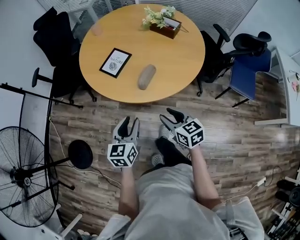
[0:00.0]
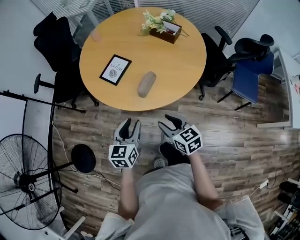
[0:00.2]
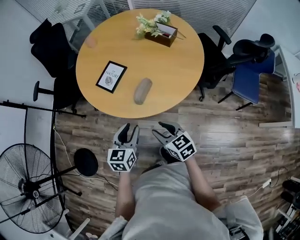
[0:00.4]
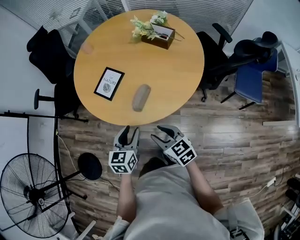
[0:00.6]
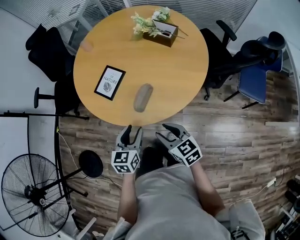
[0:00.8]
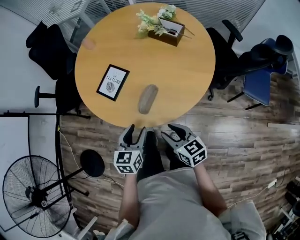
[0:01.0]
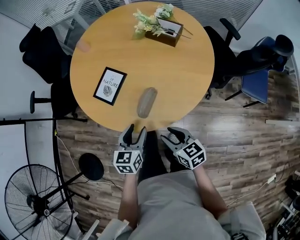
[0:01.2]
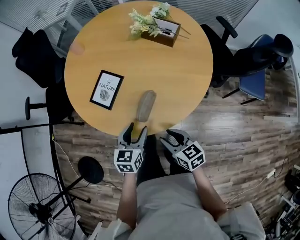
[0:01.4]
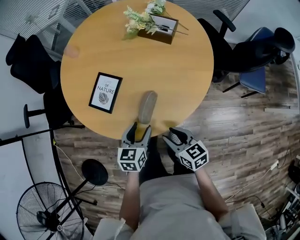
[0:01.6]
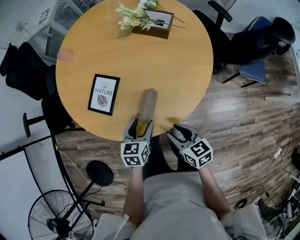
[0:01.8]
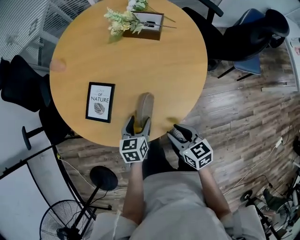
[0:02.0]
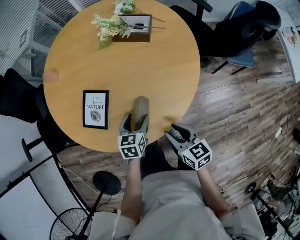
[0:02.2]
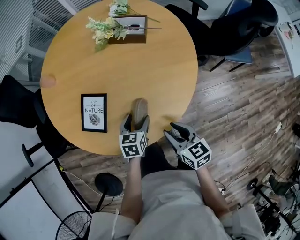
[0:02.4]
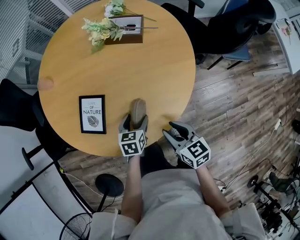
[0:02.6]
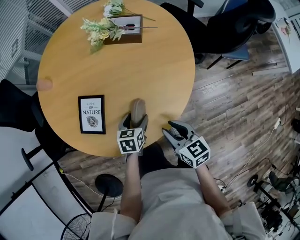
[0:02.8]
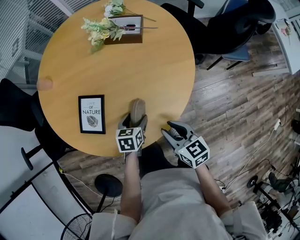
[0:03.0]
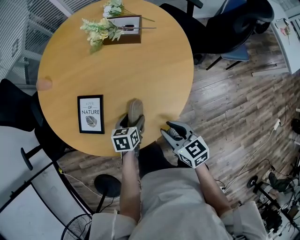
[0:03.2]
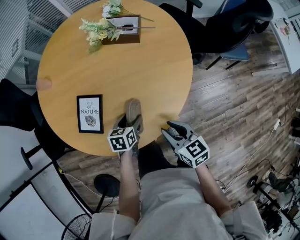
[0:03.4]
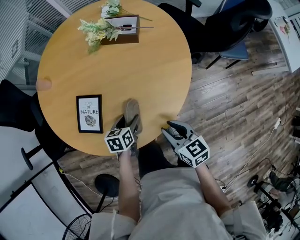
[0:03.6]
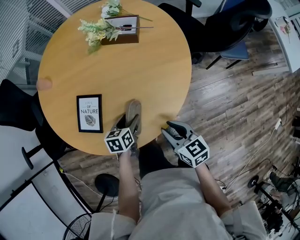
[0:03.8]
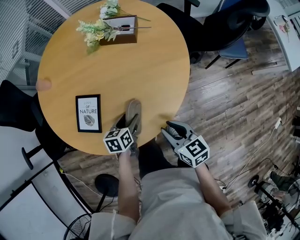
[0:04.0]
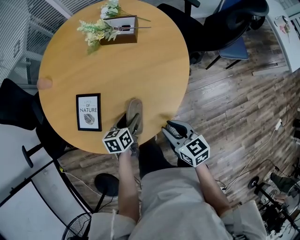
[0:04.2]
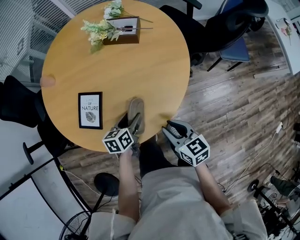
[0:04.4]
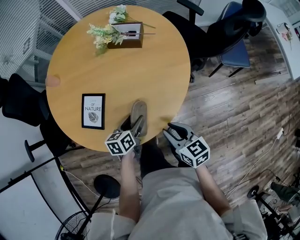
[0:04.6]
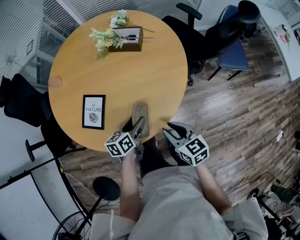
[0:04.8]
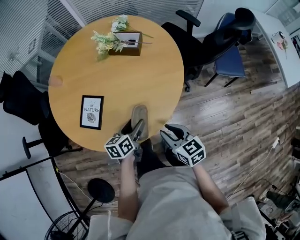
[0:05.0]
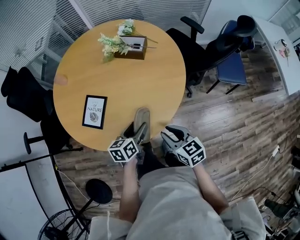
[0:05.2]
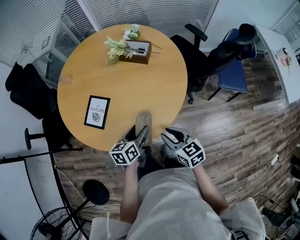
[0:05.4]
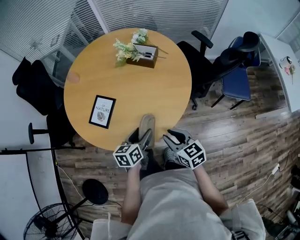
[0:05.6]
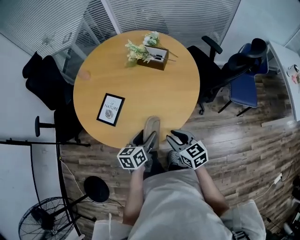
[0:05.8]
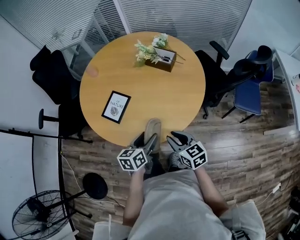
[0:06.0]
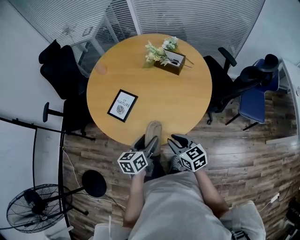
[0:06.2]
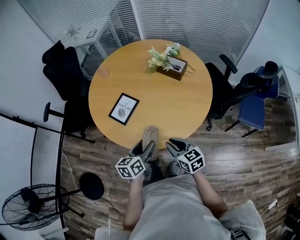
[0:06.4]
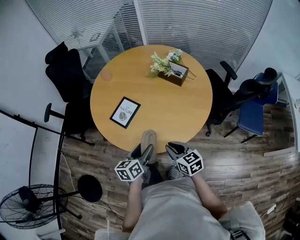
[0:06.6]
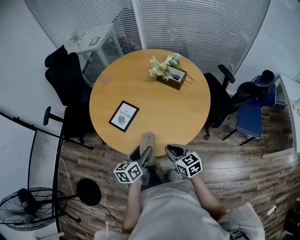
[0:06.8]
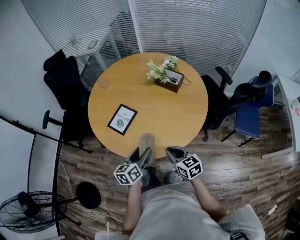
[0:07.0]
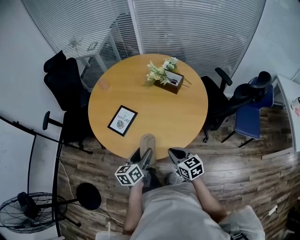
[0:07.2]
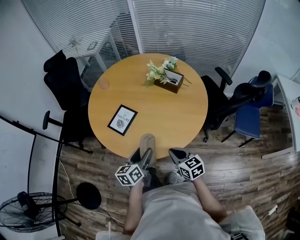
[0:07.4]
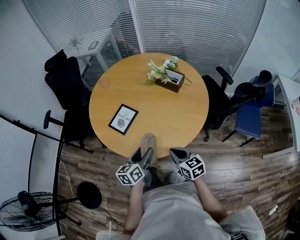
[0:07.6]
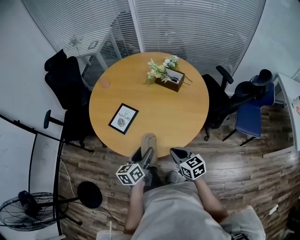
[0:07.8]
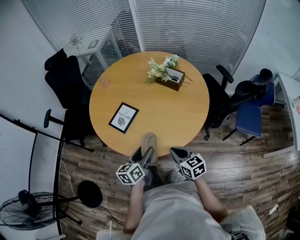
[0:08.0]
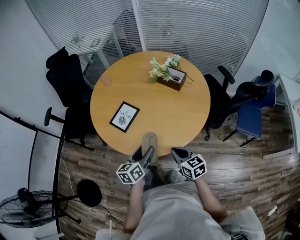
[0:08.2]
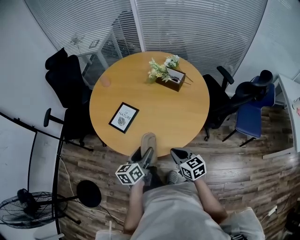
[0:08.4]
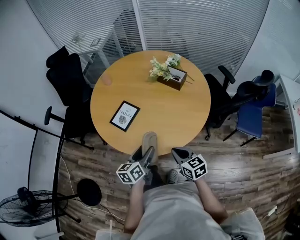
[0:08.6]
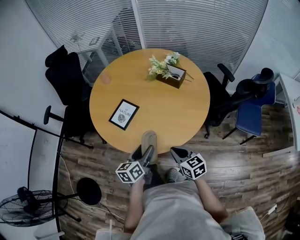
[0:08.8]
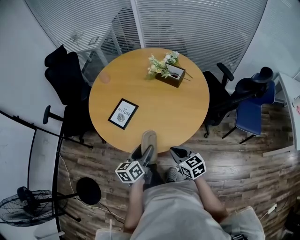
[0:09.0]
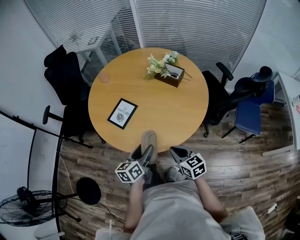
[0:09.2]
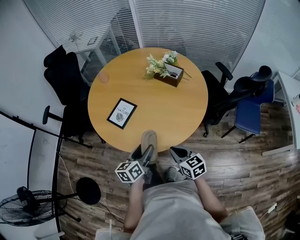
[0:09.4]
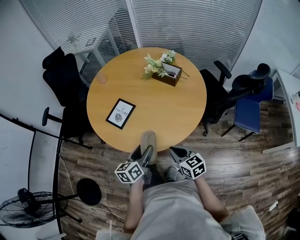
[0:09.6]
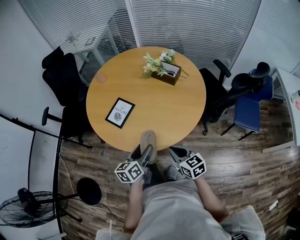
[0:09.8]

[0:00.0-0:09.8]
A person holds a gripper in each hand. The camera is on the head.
0:00.0 to 0:01.4: The left gripper moves forward, downward and to the right, approximately 20 cm. Meanwhile the right gripper moves forward and downward, approximately 15 cm.
0:01.4 to 0:02.8: The left gripper goes about 10 cm downward, and rotates approximately 30 degrees, while the right gripper ends up roughly 5 cm from where it was, and turns by some 20 degrees.
0:02.8 to 0:04.2: The grippers stay close to where they were, moving slightly.
0:04.2 to 0:05.6: The right gripper shifts about 5 cm upward, while the left gripper goes some 15 cm upward, backward and to the right.
0:05.6 to 0:07.0: The left gripper moves to the left, about 10 cm.
0:07.0 to 0:09.8: The grippers stay close to where they were, moving slightly.

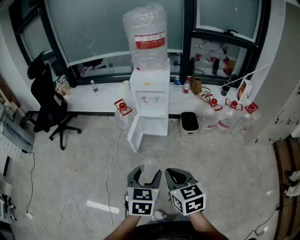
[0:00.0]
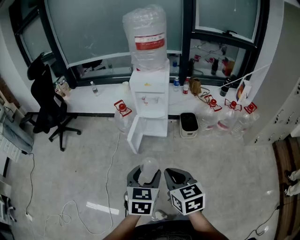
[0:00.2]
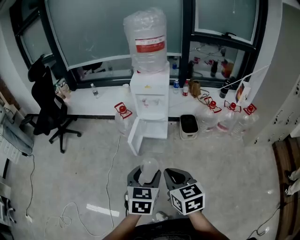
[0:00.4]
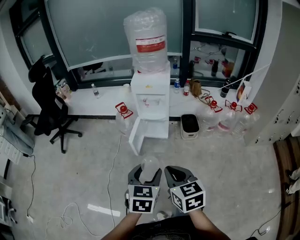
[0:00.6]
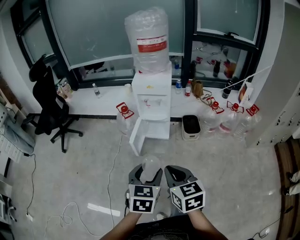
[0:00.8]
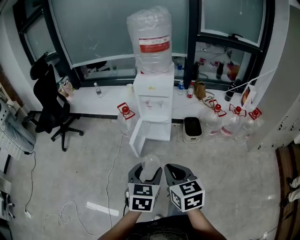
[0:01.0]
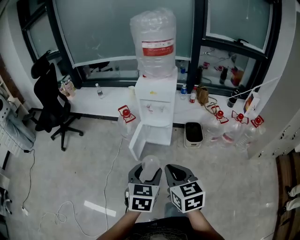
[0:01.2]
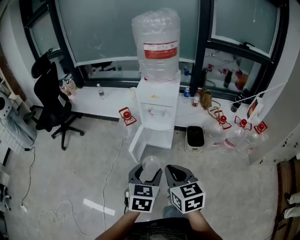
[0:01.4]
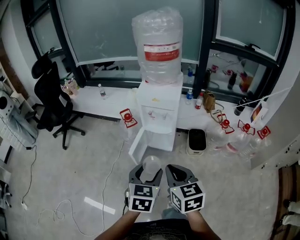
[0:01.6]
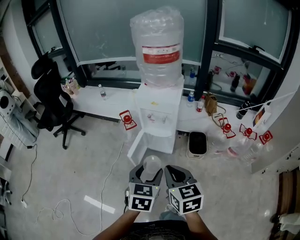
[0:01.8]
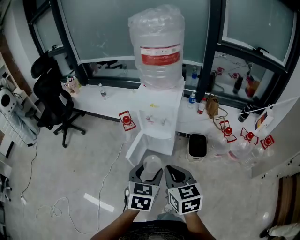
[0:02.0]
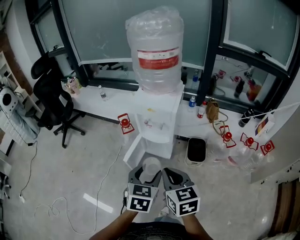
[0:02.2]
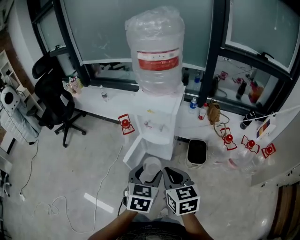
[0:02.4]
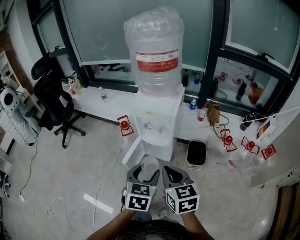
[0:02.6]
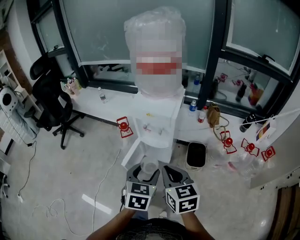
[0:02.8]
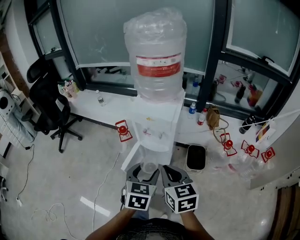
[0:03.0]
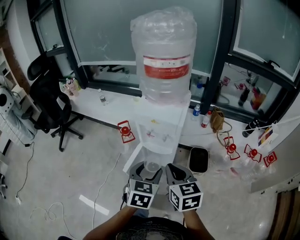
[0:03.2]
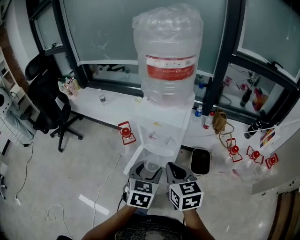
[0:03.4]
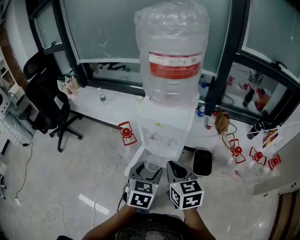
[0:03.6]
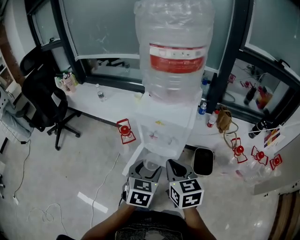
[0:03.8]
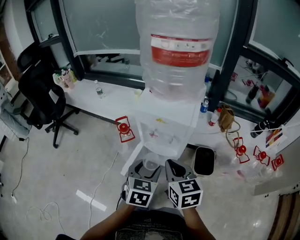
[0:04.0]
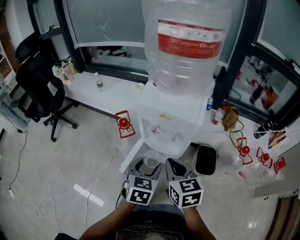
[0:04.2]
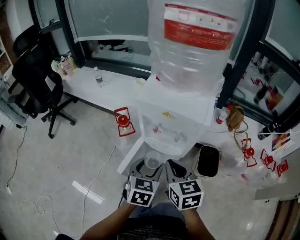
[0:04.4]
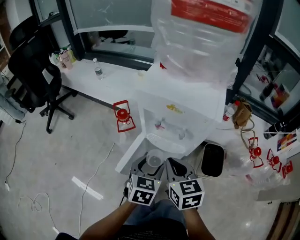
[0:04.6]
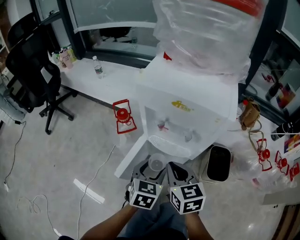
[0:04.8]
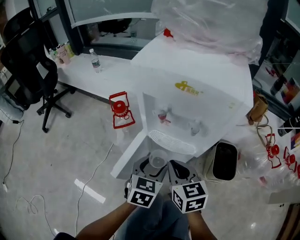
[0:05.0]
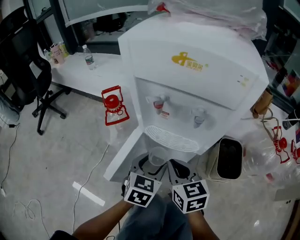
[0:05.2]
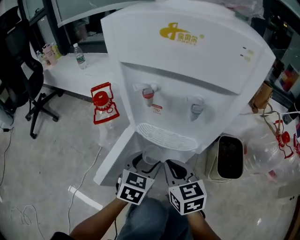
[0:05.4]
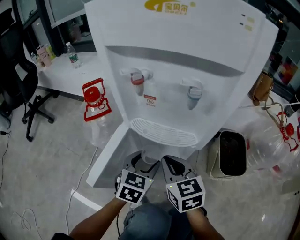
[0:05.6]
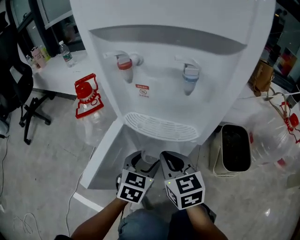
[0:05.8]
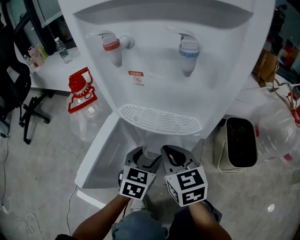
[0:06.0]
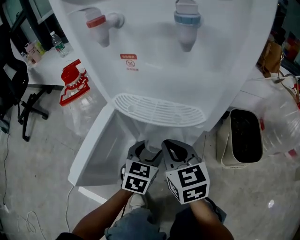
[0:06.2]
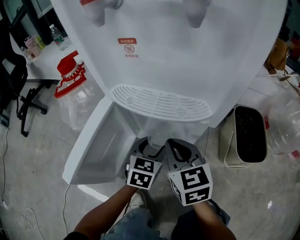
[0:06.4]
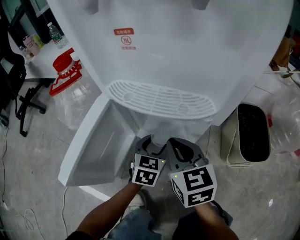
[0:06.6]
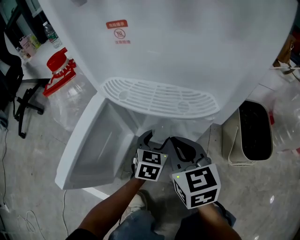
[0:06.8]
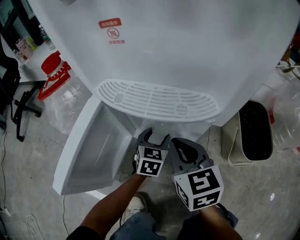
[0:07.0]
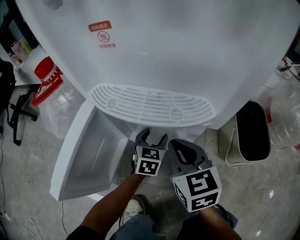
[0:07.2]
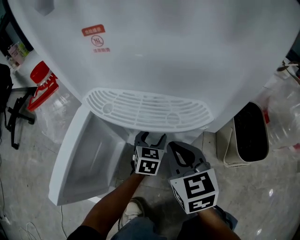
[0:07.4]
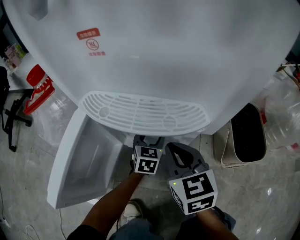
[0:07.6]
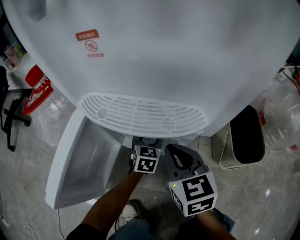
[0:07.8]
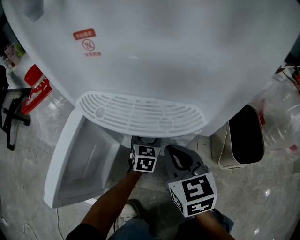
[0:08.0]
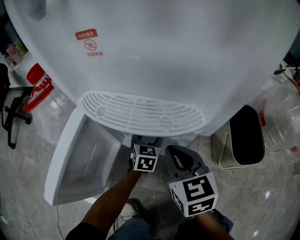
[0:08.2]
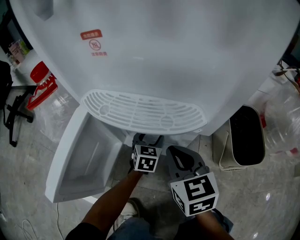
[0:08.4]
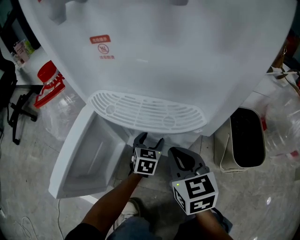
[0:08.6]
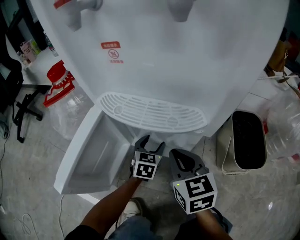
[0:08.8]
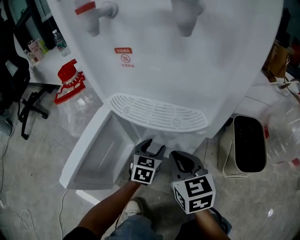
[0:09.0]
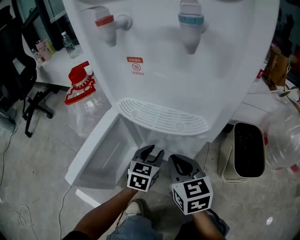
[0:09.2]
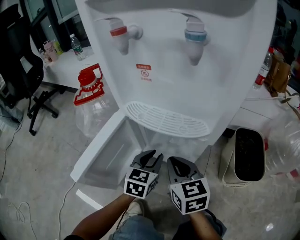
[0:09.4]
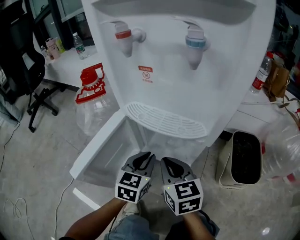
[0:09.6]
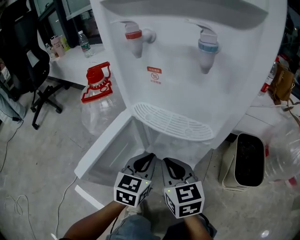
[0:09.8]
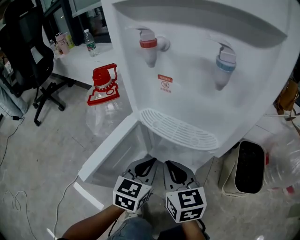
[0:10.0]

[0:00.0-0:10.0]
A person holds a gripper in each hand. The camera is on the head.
0:00.0 to 0:01.4: Both grippers move forward, about 15 cm.
0:01.4 to 0:02.8: The grippers both shift forward and to the right by some 20 cm.
0:02.8 to 0:04.2: Both grippers travel together forward and downward, about 20 cm.
0:04.2 to 0:05.8: The two grippers go about 40 cm downward.
0:05.8 to 0:07.2: The left gripper is displaced downward and forward by about 20 cm. The right gripper travels downward by some 10 cm.
0:07.2 to 0:08.6: The grippers stay close to where they were, moving slightly.
0:08.6 to 0:10.0: The right gripper is displaced to the left and upward by approximately 10 cm; the left gripper is displaced upward, backward and to the left by approximately 25 cm, and closes up.

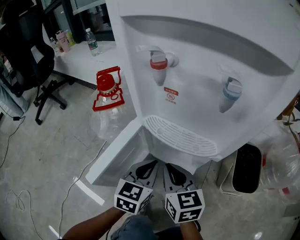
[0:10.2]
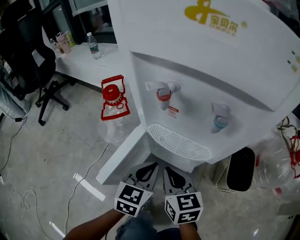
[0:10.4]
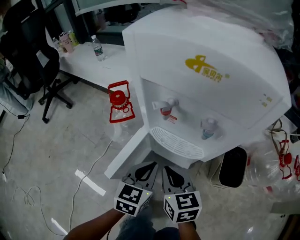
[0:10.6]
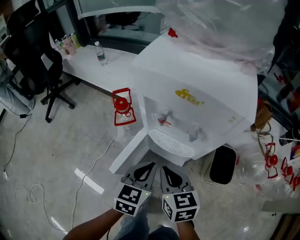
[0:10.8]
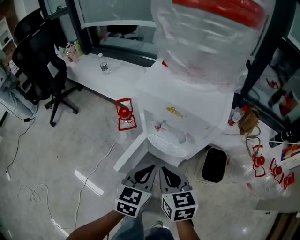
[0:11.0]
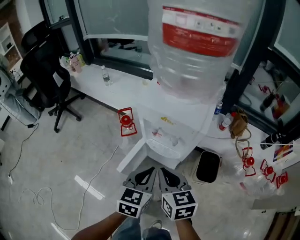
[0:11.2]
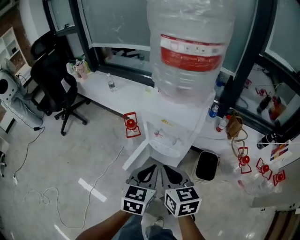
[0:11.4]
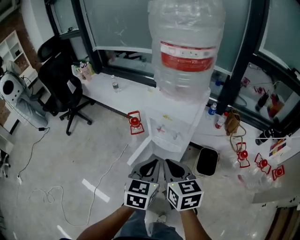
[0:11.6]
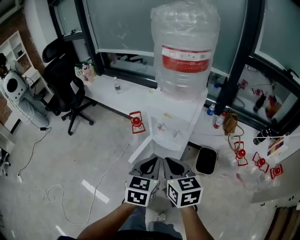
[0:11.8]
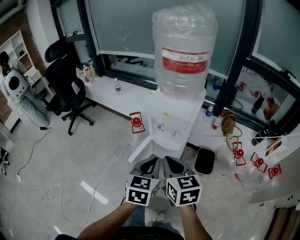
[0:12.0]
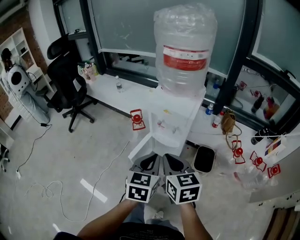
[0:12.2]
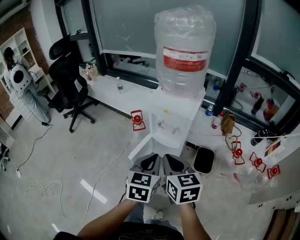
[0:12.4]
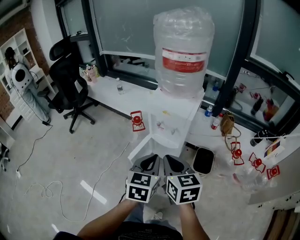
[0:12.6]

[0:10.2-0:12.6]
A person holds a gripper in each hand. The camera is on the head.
0:10.2 to 0:11.4: Both grippers move upward, roughly 50 cm.
0:11.4 to 0:12.6: Both grippers travel together backward and upward, about 15 cm.

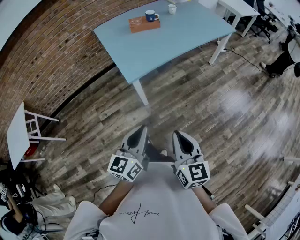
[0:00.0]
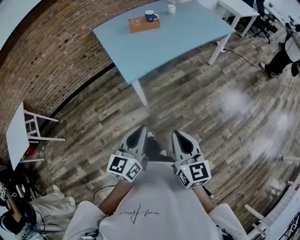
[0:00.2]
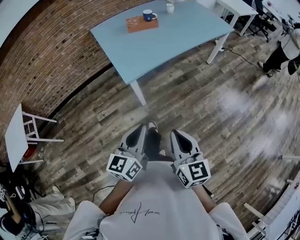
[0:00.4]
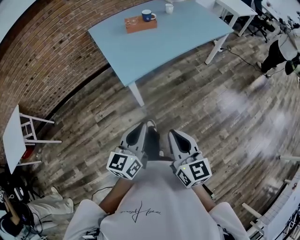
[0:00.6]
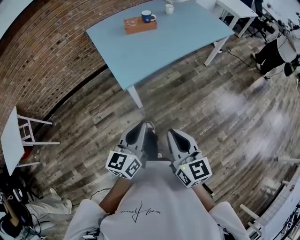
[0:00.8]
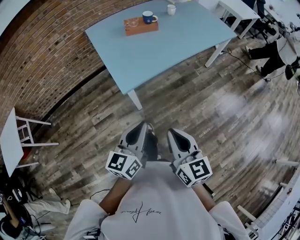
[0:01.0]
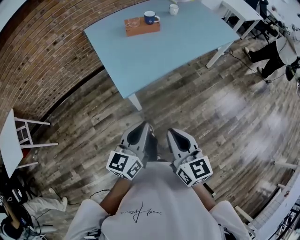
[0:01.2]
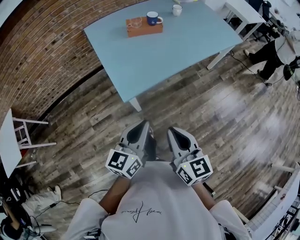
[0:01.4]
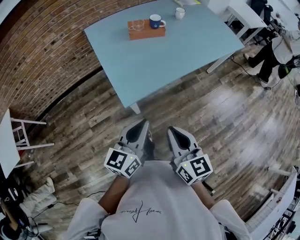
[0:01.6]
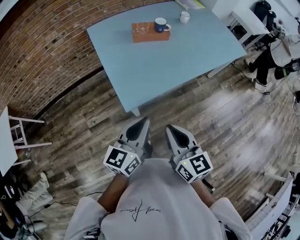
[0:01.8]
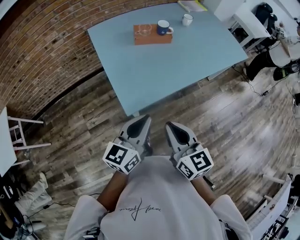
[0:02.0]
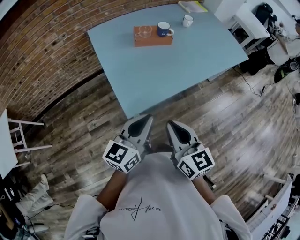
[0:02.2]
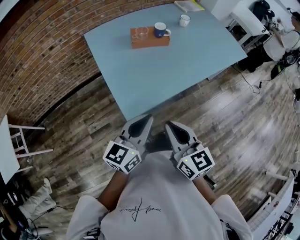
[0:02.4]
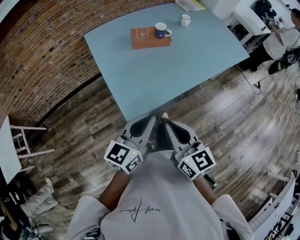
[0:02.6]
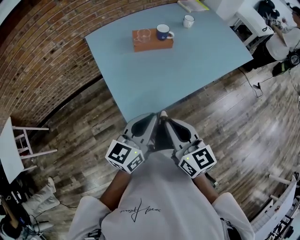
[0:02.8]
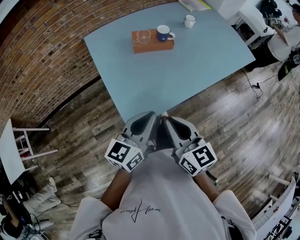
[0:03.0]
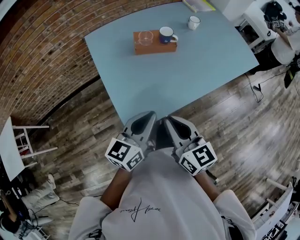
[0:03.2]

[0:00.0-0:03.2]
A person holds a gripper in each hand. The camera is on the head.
0:00.0 to 0:01.6: The grippers both shift forward by approximately 20 cm.
0:01.6 to 0:03.2: The two grippers go roughly 20 cm forward.
